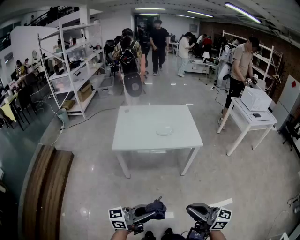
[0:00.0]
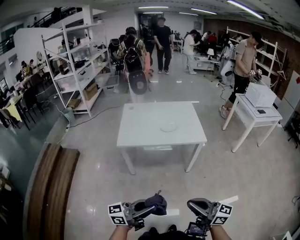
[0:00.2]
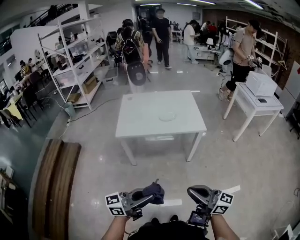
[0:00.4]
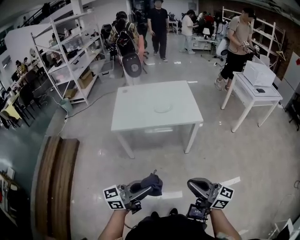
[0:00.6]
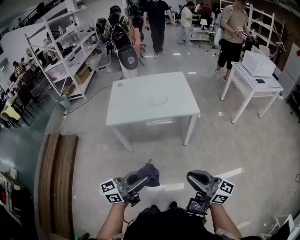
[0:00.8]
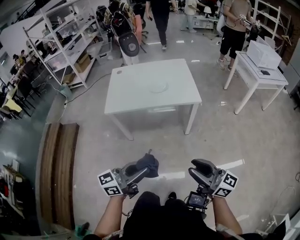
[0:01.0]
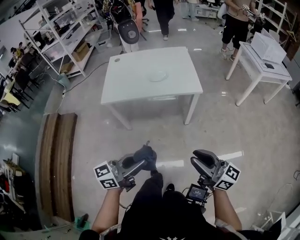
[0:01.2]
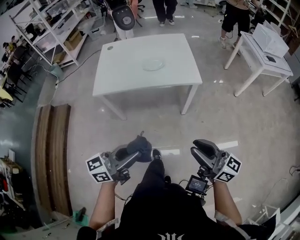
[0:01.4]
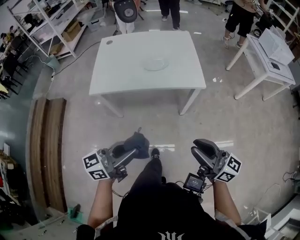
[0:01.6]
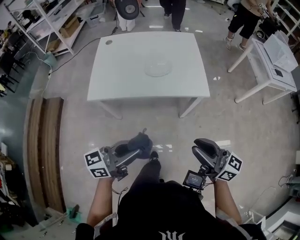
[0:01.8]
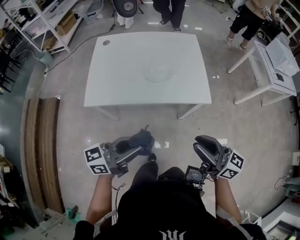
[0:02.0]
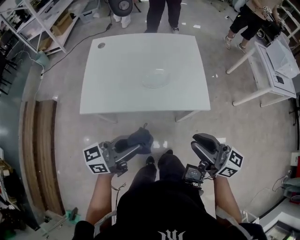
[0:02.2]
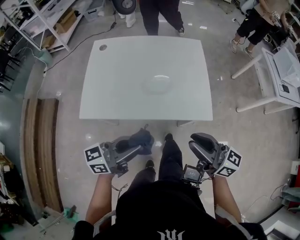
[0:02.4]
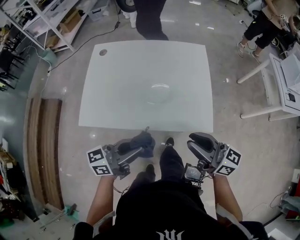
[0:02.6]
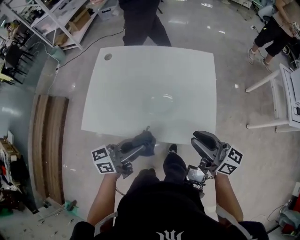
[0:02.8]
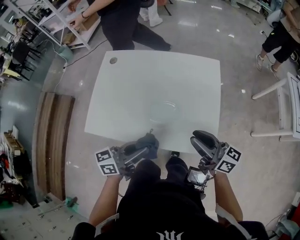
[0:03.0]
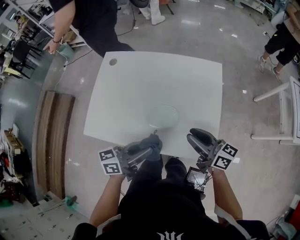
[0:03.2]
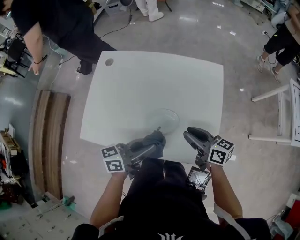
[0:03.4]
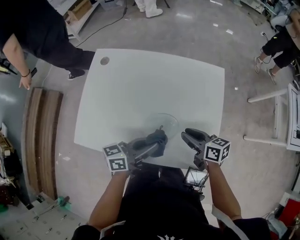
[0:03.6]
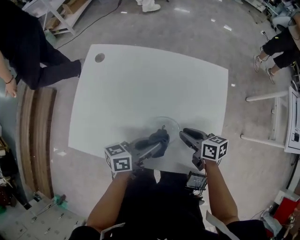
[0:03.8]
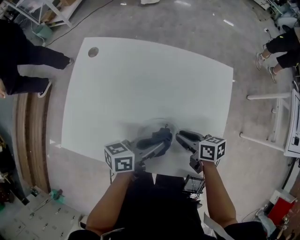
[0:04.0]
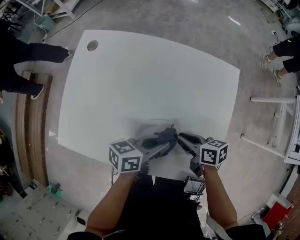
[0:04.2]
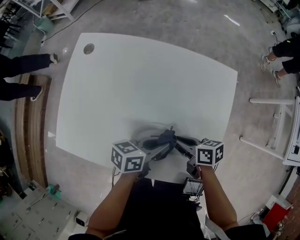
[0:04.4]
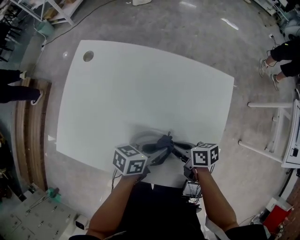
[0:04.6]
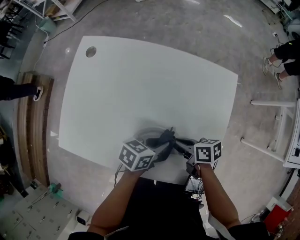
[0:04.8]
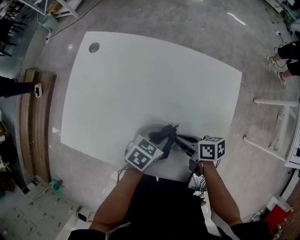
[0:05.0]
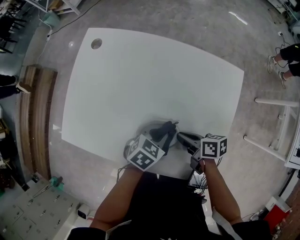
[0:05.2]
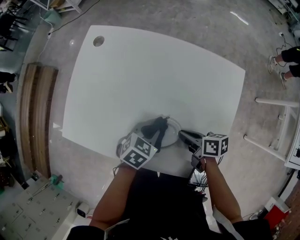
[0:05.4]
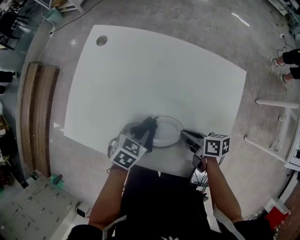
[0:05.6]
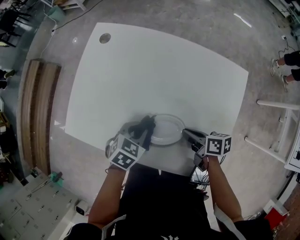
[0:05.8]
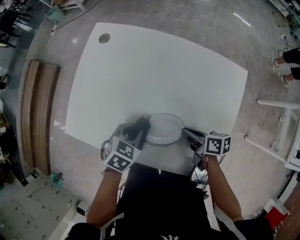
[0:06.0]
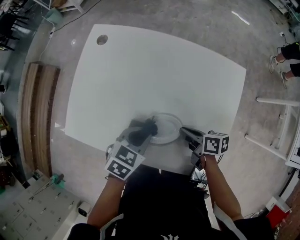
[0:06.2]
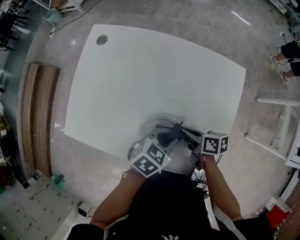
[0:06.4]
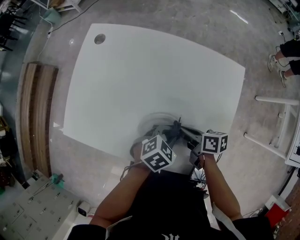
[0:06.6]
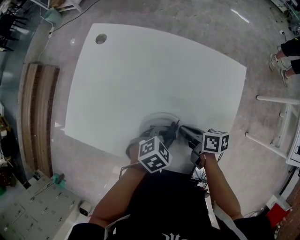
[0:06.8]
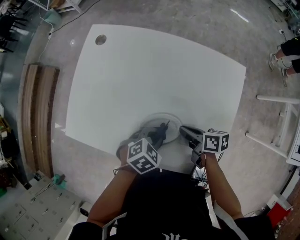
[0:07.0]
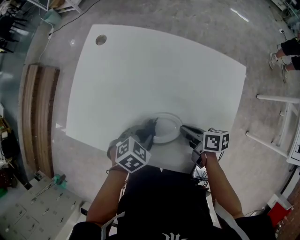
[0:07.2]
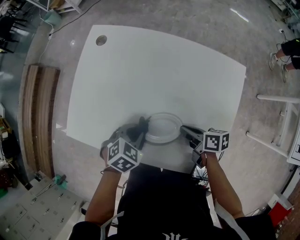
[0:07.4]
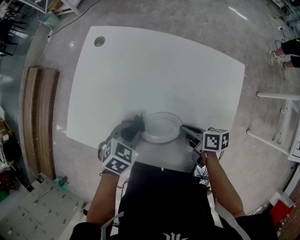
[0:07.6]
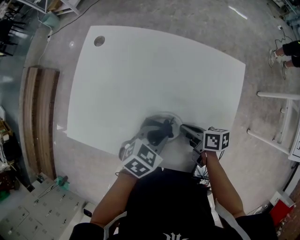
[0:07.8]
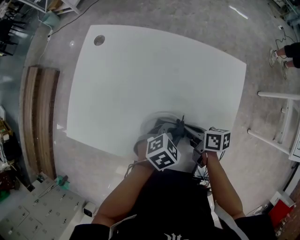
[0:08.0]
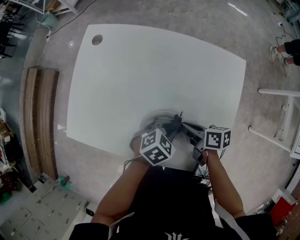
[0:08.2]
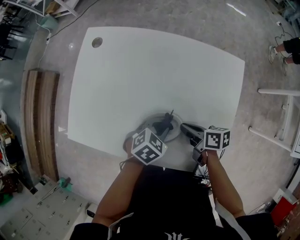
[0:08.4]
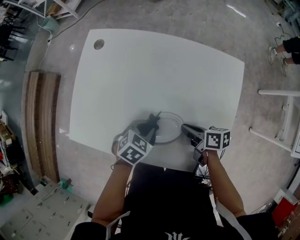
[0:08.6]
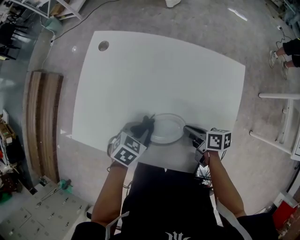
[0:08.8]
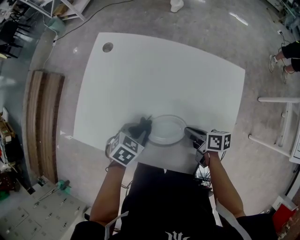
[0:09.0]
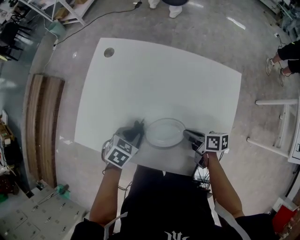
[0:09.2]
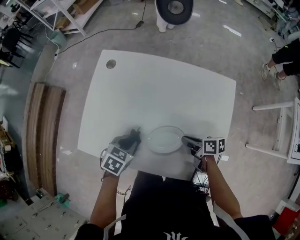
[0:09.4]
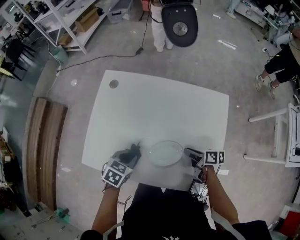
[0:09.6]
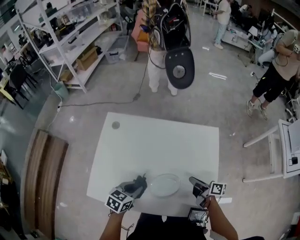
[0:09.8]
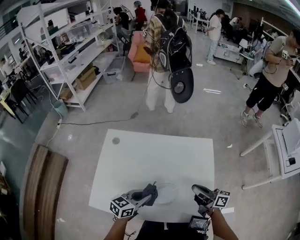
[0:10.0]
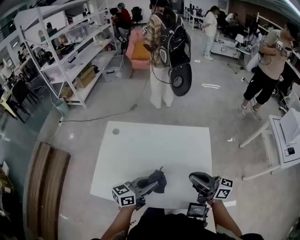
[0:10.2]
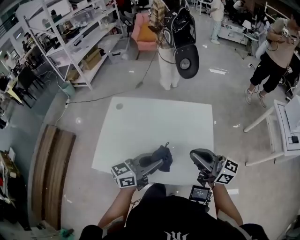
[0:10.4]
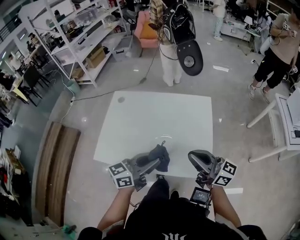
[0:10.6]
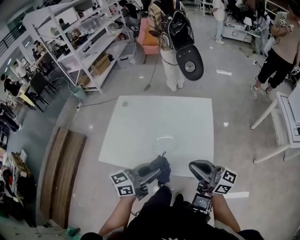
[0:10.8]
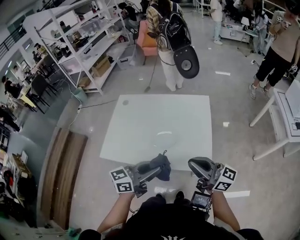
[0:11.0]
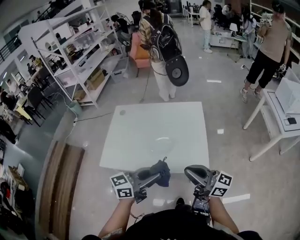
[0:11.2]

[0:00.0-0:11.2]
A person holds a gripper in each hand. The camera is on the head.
0:00.0 to 0:01.6: Both grippers travel together forward and to the right, about 25 cm. The right gripper opens up.
0:01.6 to 0:03.2: The pair of grippers is taken forward, approximately 50 cm. The right gripper rotates about 20 degrees.
0:03.2 to 0:04.8: Both grippers travel together downward, roughly 20 cm. The right gripper angles its fingers downward, by approximately 30 degrees, while the left gripper angles its fingers downward, by roughly 30 degrees.
0:04.8 to 0:06.4: The left gripper rotates some 30 degrees.
0:06.4 to 0:08.0: The left gripper goes up and down, about 5 cm each way, reversing 2 times.
0:08.0 to 0:09.6: The left gripper shifts by roughly 25 cm, and swivels approximately 20 degrees.
0:09.6 to 0:11.2: The left gripper goes approximately 40 cm upward, backward and to the right, and tilts its fingers approximately 60 degrees upward. The right gripper heads upward and backward, covering about 50 cm, and tips its fingers upward by roughly 50 degrees.

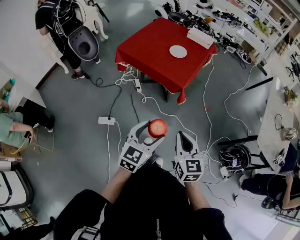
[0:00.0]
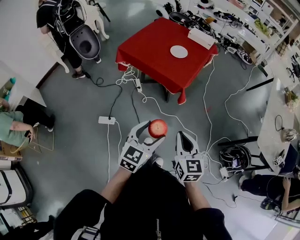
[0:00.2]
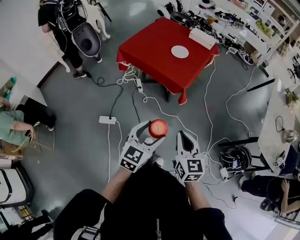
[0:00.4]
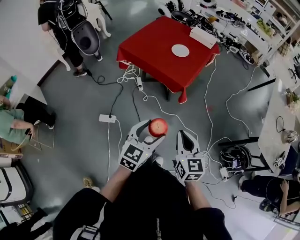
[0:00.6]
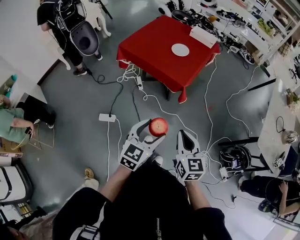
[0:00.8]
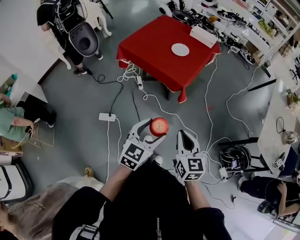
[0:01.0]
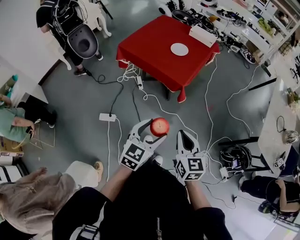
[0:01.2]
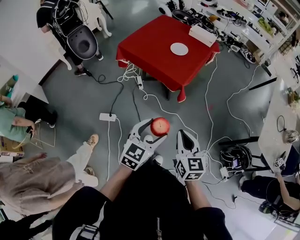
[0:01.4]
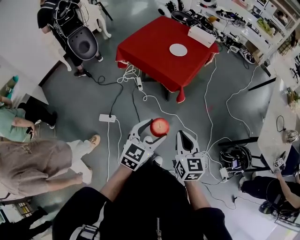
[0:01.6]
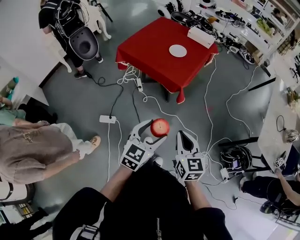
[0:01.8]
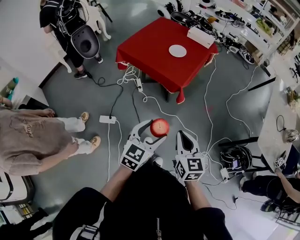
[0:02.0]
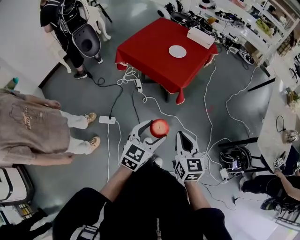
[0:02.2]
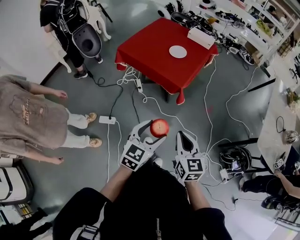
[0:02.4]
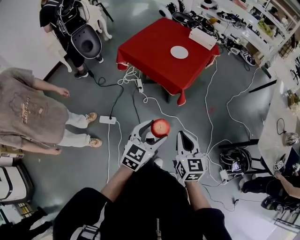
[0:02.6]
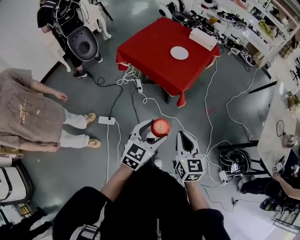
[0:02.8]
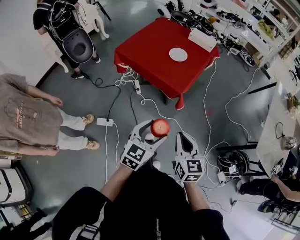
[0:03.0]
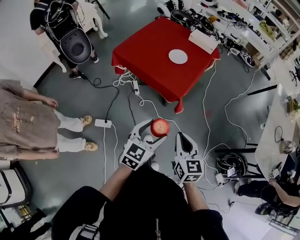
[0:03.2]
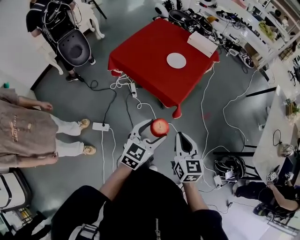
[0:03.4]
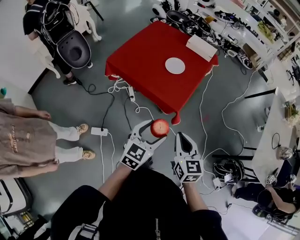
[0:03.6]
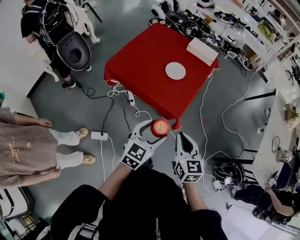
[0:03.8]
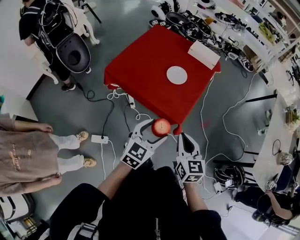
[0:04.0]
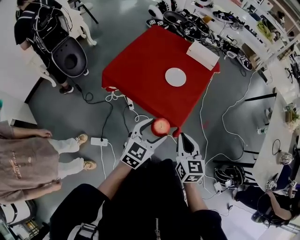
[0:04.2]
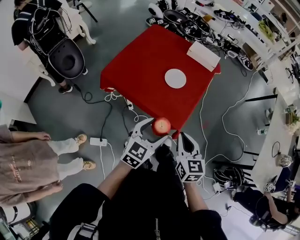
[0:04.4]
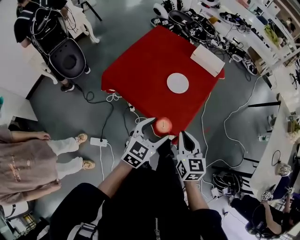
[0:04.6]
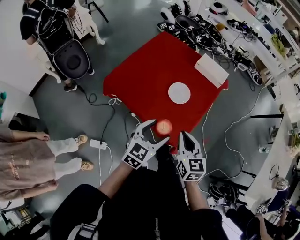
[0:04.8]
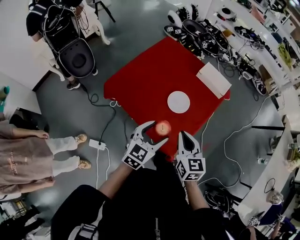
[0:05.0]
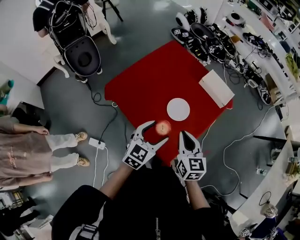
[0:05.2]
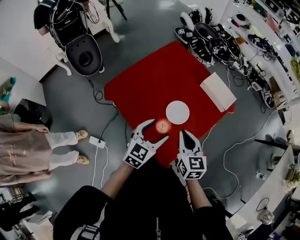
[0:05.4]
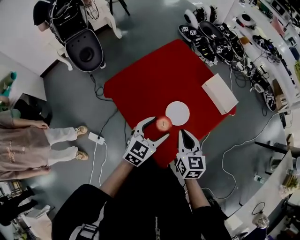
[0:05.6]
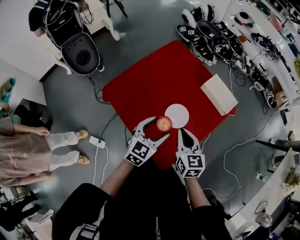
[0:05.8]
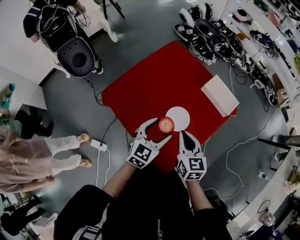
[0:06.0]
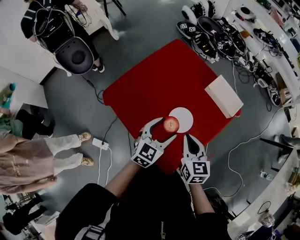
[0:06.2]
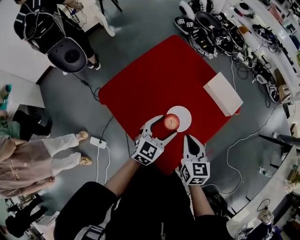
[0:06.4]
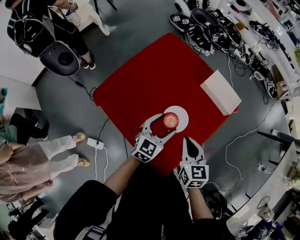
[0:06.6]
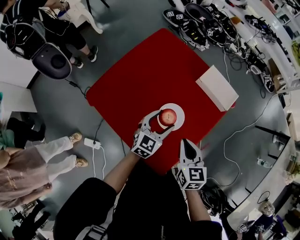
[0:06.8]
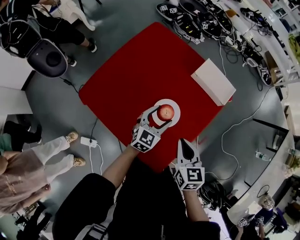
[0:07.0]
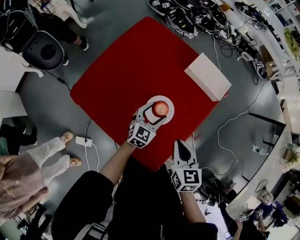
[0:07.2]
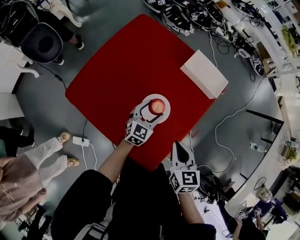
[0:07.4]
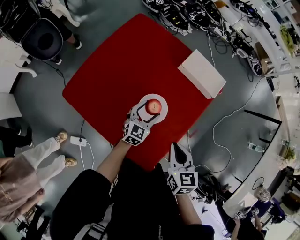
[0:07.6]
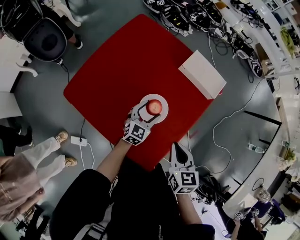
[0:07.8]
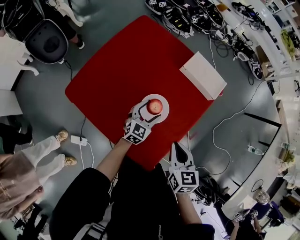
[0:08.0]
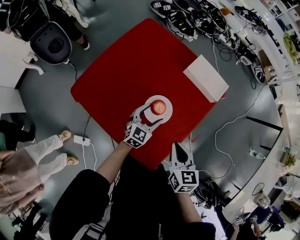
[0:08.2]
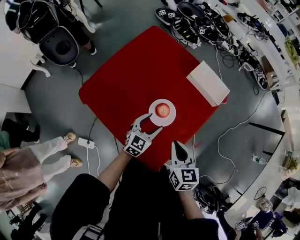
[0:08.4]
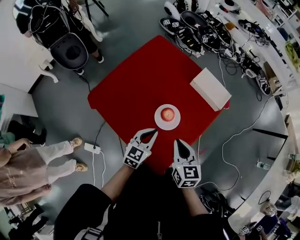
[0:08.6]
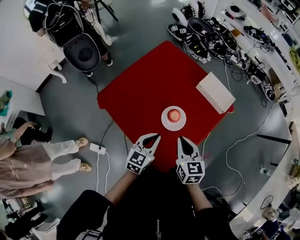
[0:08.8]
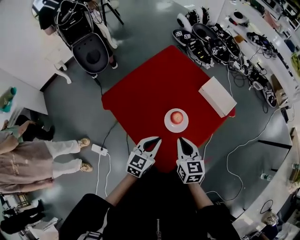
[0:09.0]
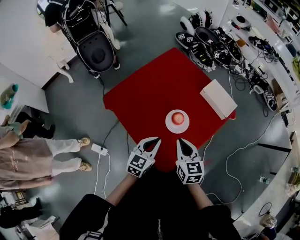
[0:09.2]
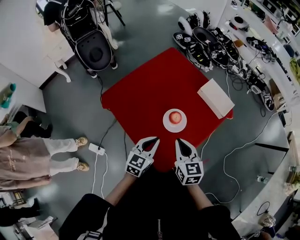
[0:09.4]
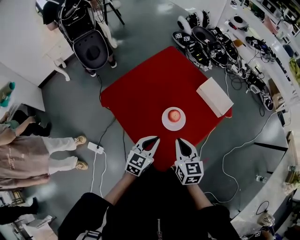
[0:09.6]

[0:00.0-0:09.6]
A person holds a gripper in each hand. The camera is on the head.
0:00.0 to 0:01.6: The grippers move only a little.
0:01.6 to 0:03.2: Both grippers travel together forward, approximately 10 cm.
0:03.2 to 0:04.8: The two grippers go some 35 cm forward.
0:04.8 to 0:06.4: Both grippers move forward, roughly 20 cm.
0:06.4 to 0:08.0: The right gripper heads to the right, covering approximately 5 cm. The left gripper shifts approximately 15 cm downward.
0:08.0 to 0:09.6: The left gripper is displaced backward and upward by roughly 20 cm, and closes up; the right gripper goes approximately 10 cm to the left and upward, and changes its angle by some 20 degrees.

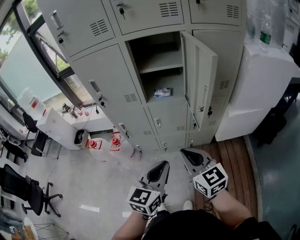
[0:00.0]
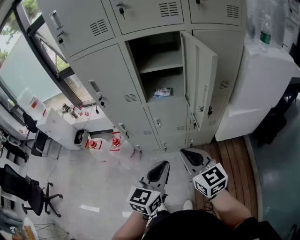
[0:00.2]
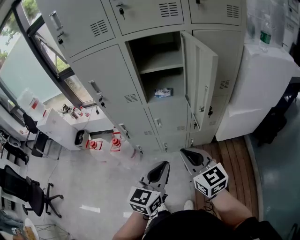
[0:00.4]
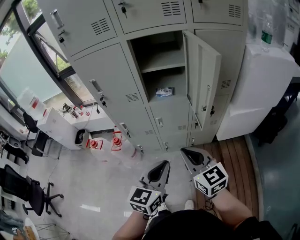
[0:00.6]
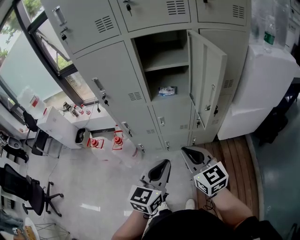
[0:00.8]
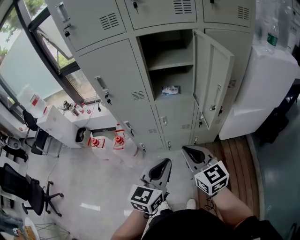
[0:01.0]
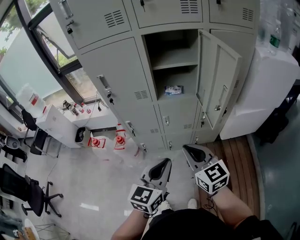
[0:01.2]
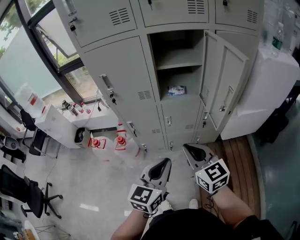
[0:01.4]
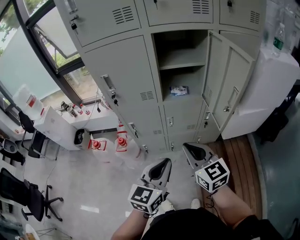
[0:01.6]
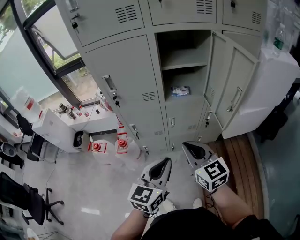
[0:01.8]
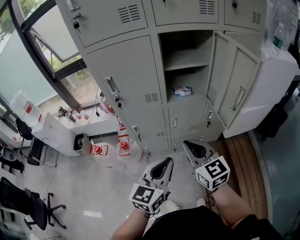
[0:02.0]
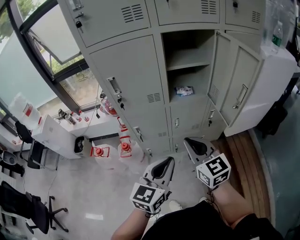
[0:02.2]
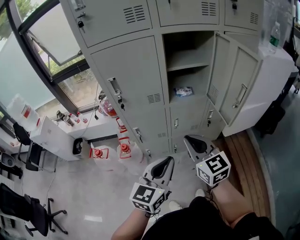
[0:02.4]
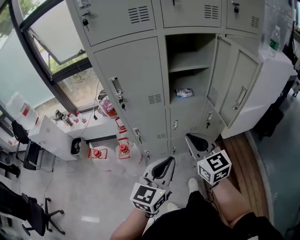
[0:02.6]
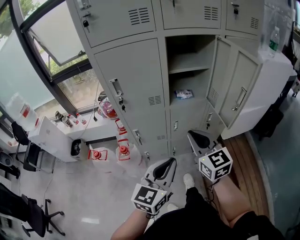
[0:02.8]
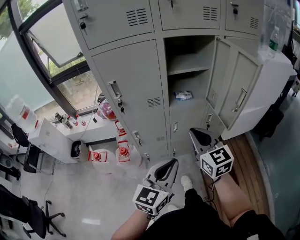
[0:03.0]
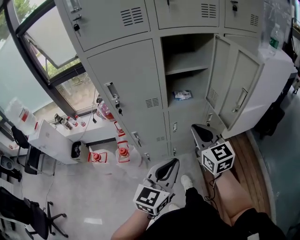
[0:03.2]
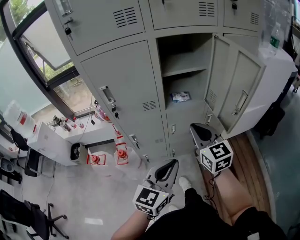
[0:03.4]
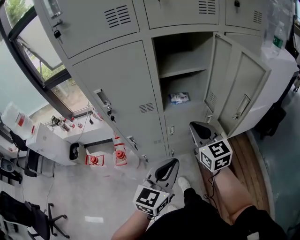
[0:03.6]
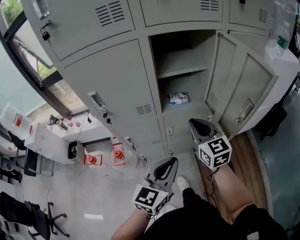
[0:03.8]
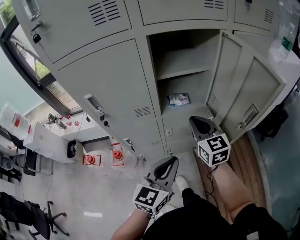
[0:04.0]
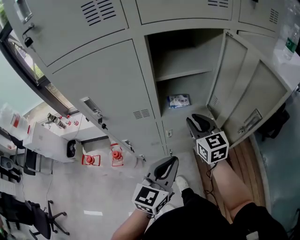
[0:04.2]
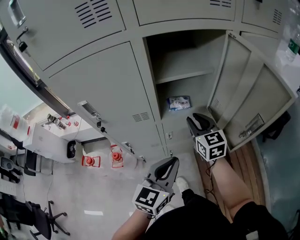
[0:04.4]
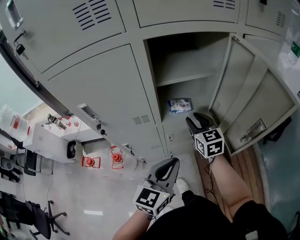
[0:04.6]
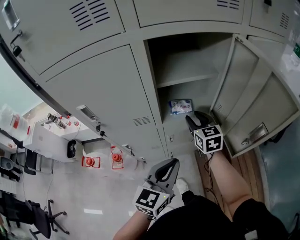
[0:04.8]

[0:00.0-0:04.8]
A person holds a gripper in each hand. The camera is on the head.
0:00.0 to 0:01.6: Both grippers move to the left, roughly 10 cm.
0:01.6 to 0:03.2: The right gripper heads forward, covering roughly 10 cm.
0:03.2 to 0:04.8: The left gripper goes about 15 cm forward, while the right gripper goes about 25 cm forward and downward, and opens up.
